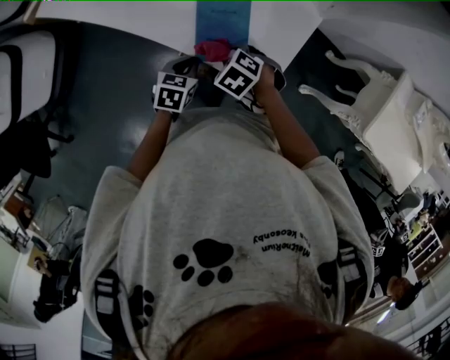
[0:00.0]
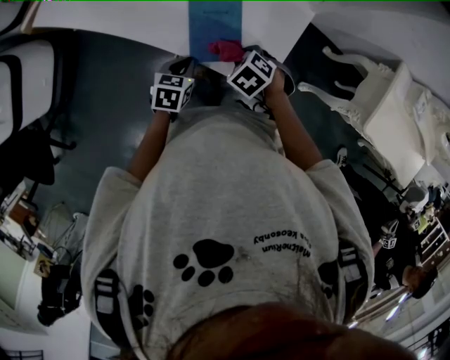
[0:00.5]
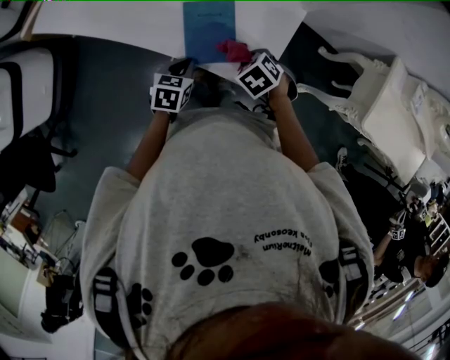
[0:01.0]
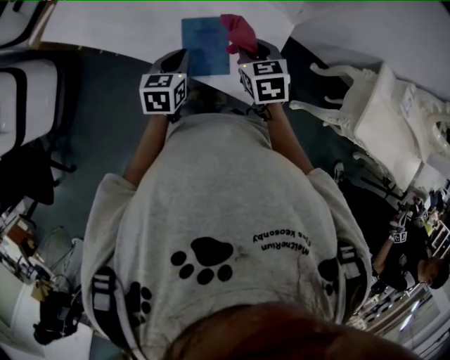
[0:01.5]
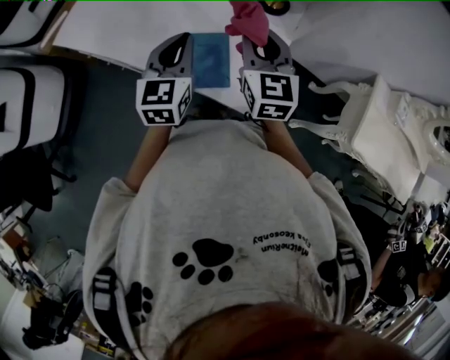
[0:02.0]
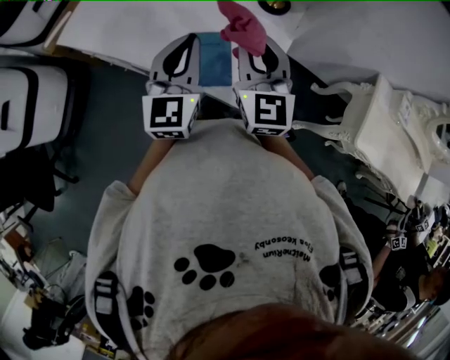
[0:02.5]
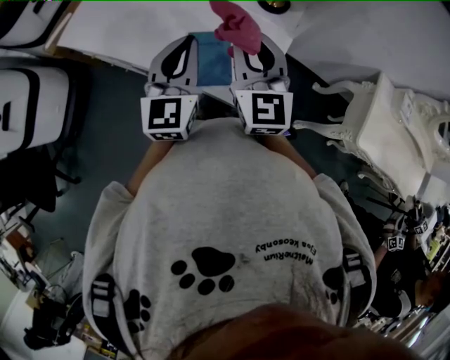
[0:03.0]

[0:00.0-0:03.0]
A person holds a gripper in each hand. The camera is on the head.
0:00.0 to 0:01.5: The grippers both shift upward by approximately 15 cm. The right gripper points its fingers roughly 30 degrees further upward.
0:01.5 to 0:03.0: The two grippers go approximately 20 cm upward. The right gripper tilts its fingers roughly 40 degrees upward. Meanwhile the left gripper tips its fingers upward by some 30 degrees.

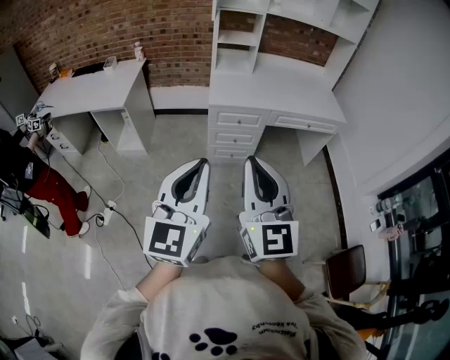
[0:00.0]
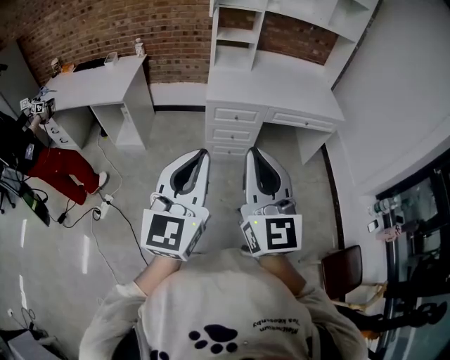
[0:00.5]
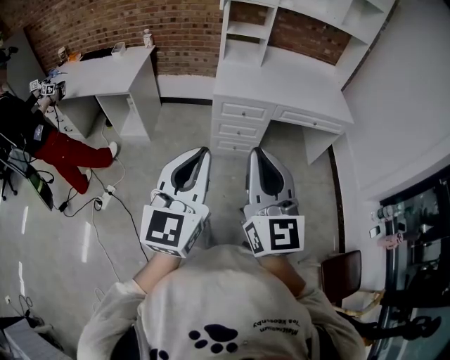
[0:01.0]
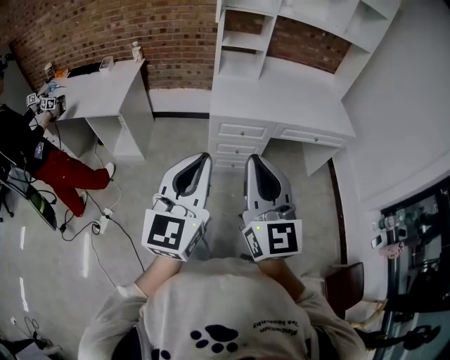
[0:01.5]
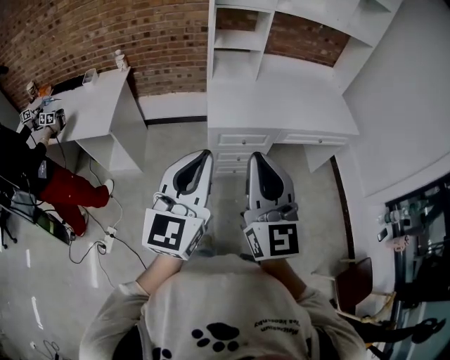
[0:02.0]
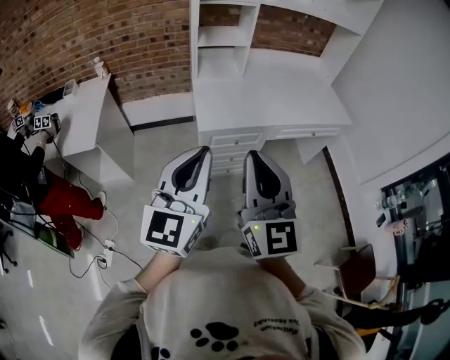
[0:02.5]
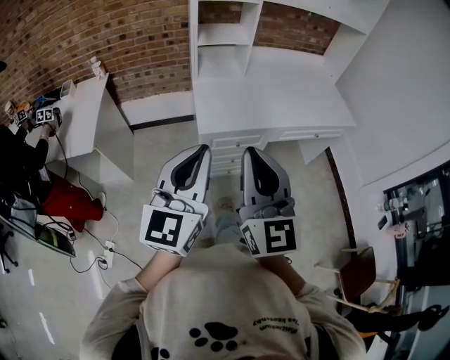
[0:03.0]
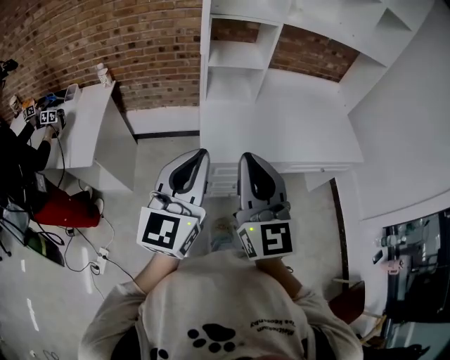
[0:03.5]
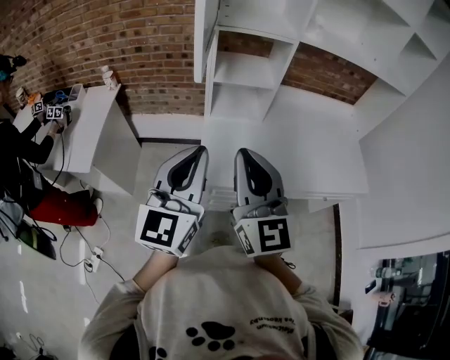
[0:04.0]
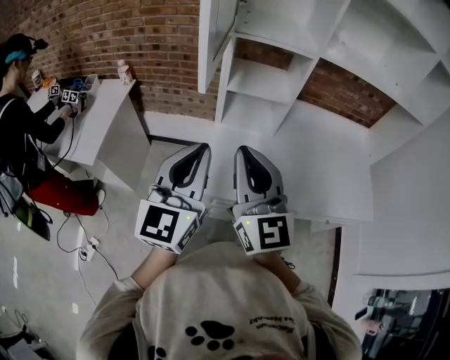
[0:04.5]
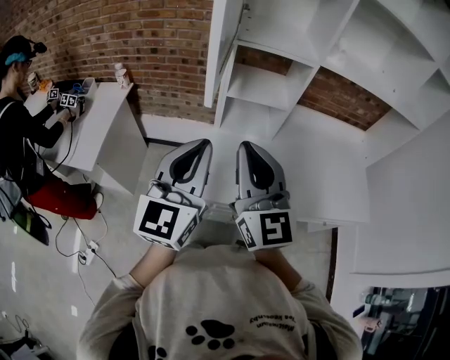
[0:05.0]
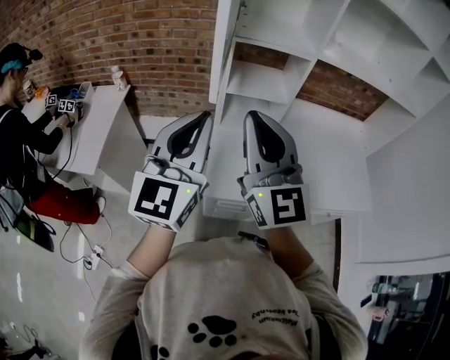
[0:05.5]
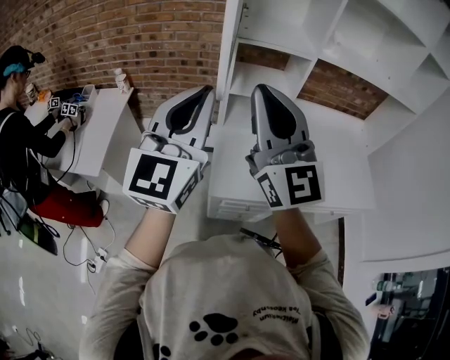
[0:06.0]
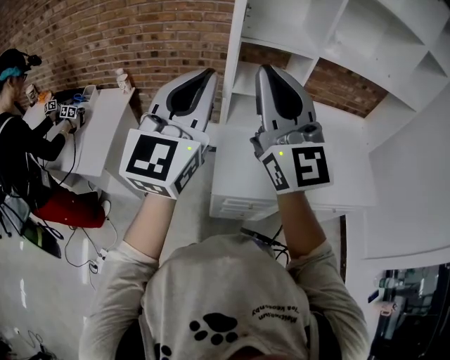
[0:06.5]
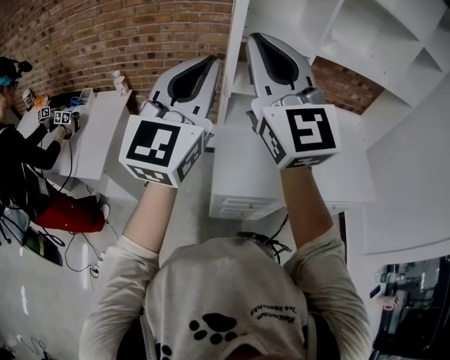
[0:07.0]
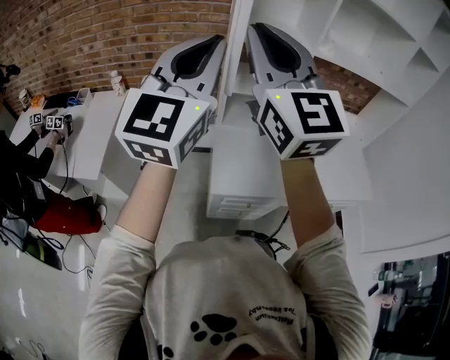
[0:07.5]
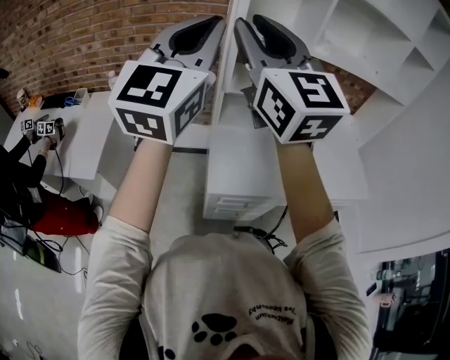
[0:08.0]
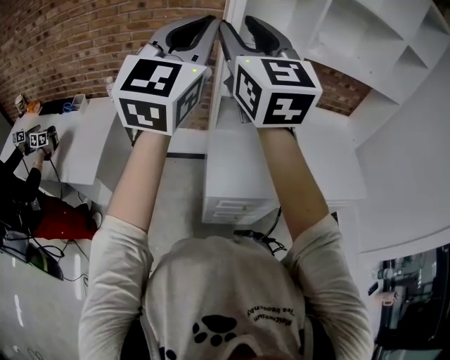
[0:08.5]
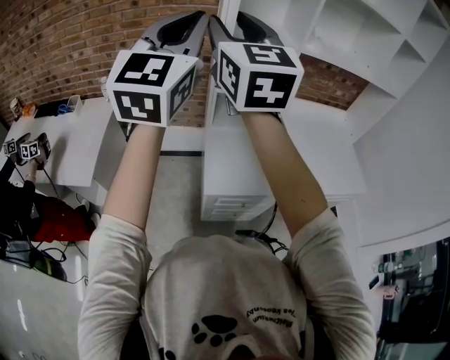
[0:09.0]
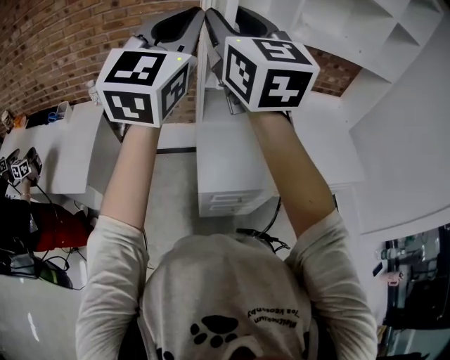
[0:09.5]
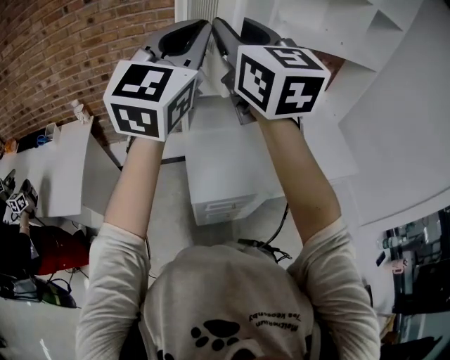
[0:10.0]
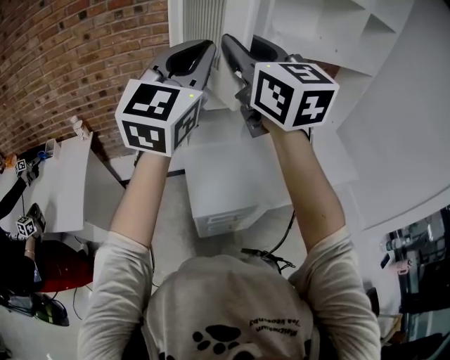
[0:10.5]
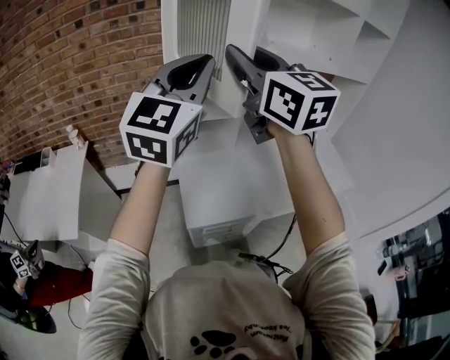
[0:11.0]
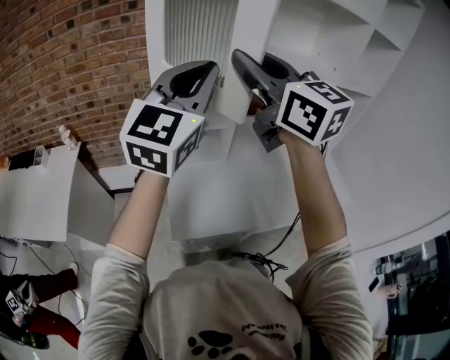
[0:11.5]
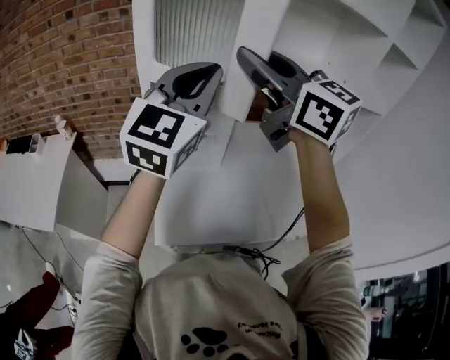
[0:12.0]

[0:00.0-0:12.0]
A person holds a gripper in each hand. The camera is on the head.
0:00.0 to 0:02.0: Both grippers move forward, roughly 25 cm.
0:02.0 to 0:04.0: The grippers both shift forward by some 30 cm.
0:04.0 to 0:06.0: Both grippers travel together upward and forward, about 15 cm.
0:06.0 to 0:08.0: The left gripper moves upward, some 10 cm. Meanwhile the right gripper is displaced upward and to the left by roughly 10 cm, and opens up.
0:08.0 to 0:10.0: Both grippers move to the right and forward, roughly 10 cm.
0:10.0 to 0:12.0: The grippers both shift to the right and forward by some 15 cm. The right gripper turns by roughly 30 degrees.

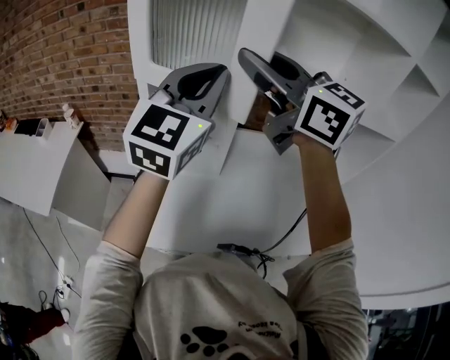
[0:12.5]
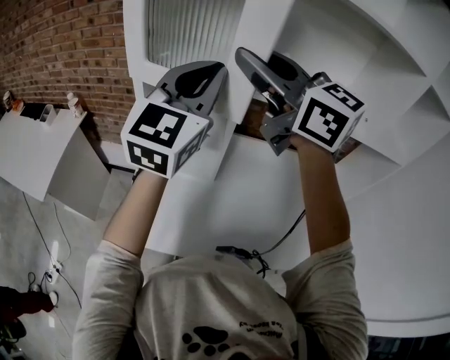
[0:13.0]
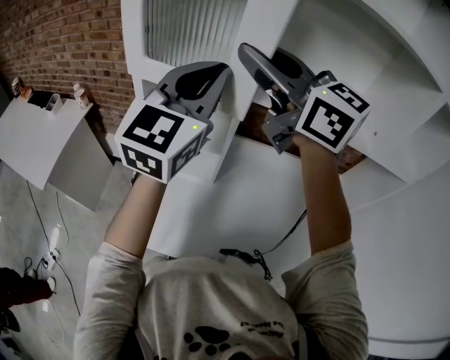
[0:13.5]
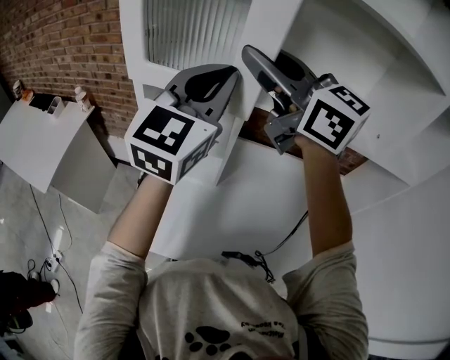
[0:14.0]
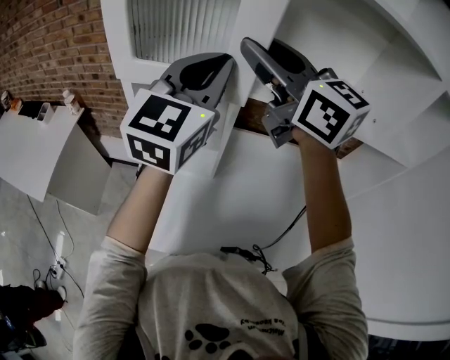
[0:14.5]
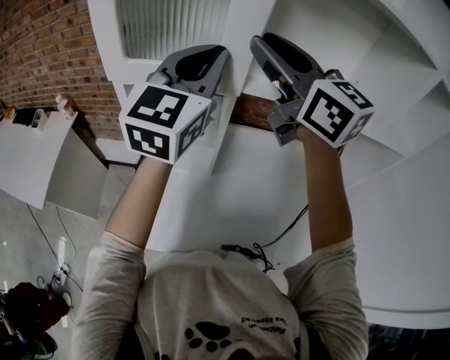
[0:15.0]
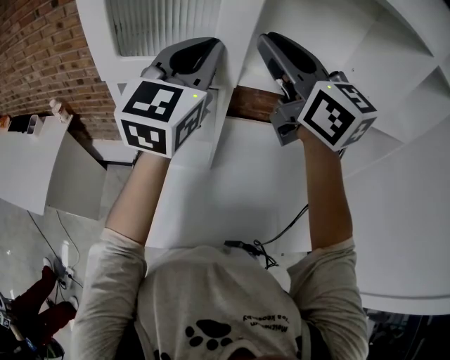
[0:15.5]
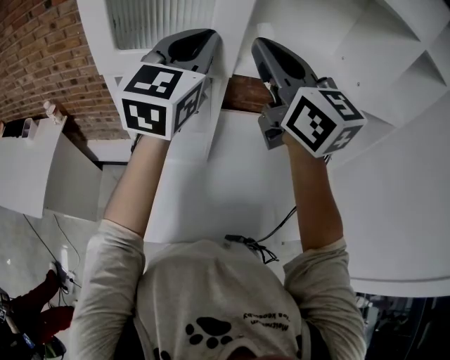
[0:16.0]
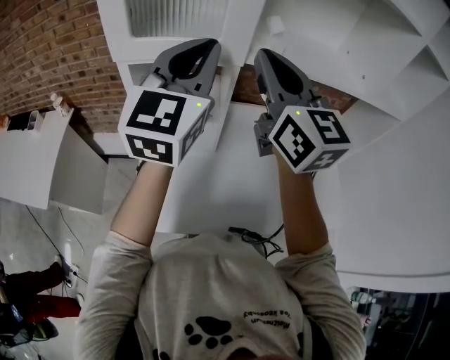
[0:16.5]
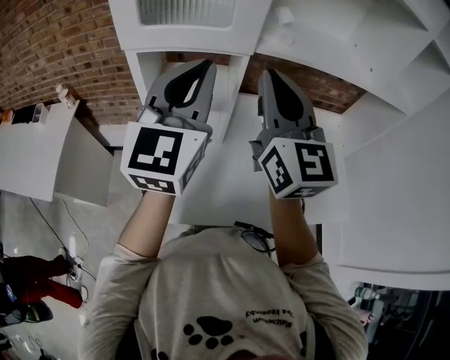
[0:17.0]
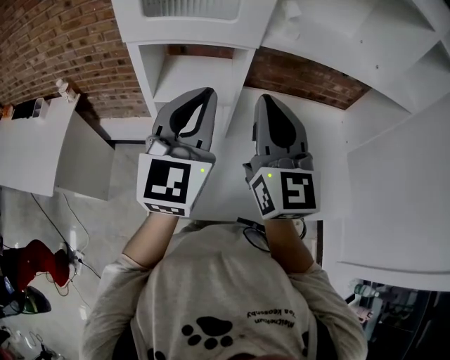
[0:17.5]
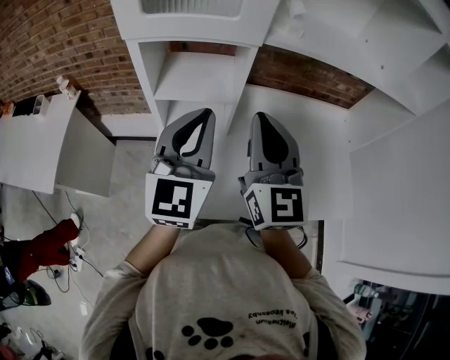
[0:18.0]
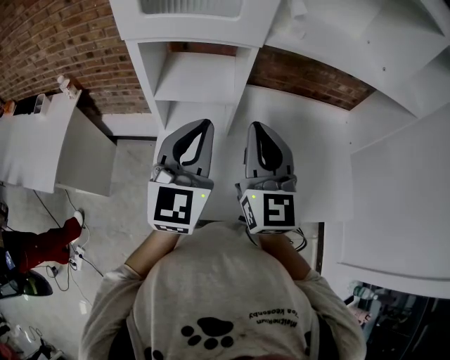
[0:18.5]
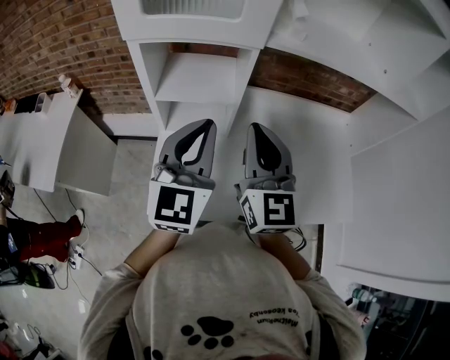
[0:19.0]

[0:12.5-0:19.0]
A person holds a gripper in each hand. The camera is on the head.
0:12.5 to 0:14.5: Both grippers travel together forward, some 5 cm.
0:14.5 to 0:17.0: The left gripper heads backward, covering approximately 10 cm. The right gripper is displaced backward and downward by roughly 15 cm, changes its angle by roughly 40 degrees, and closes up.
0:17.0 to 0:19.0: The two grippers go approximately 10 cm downward.

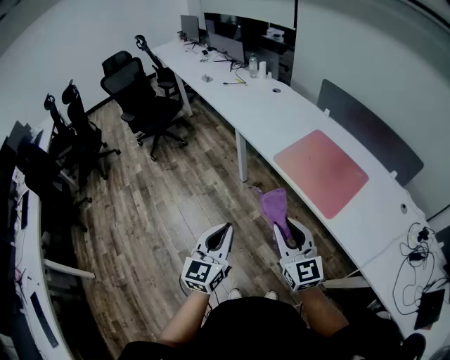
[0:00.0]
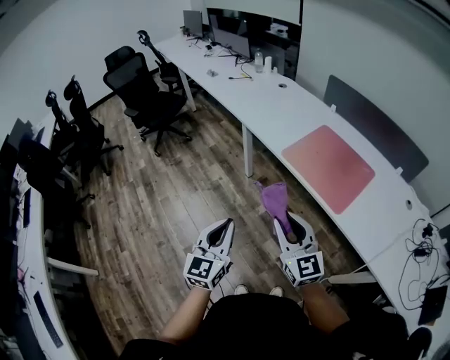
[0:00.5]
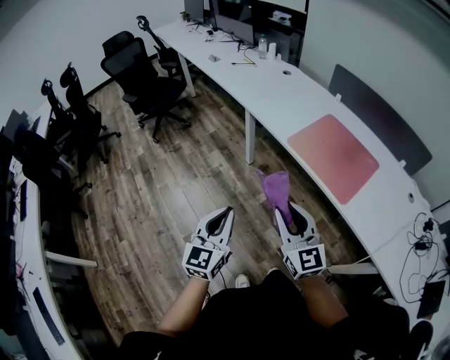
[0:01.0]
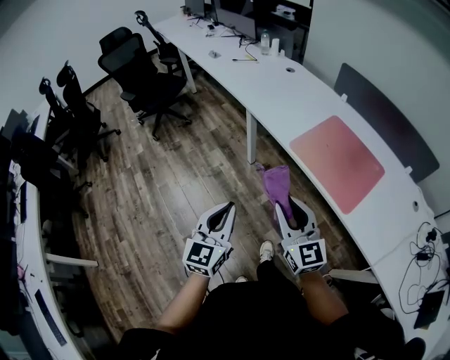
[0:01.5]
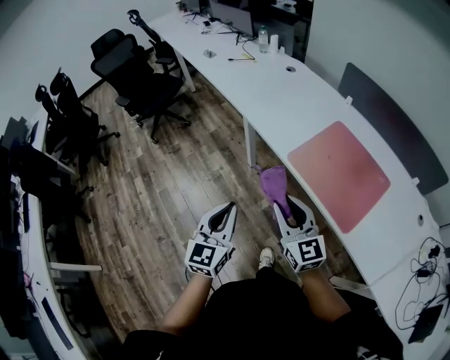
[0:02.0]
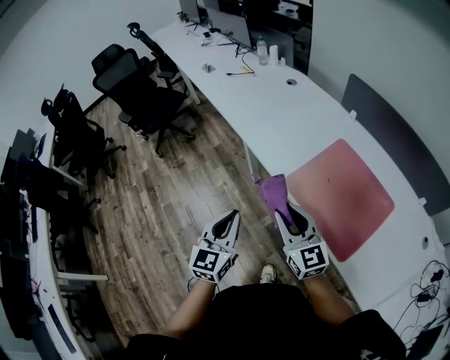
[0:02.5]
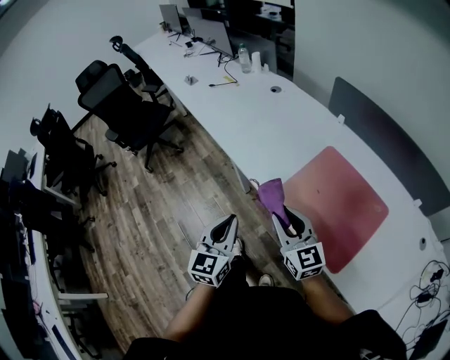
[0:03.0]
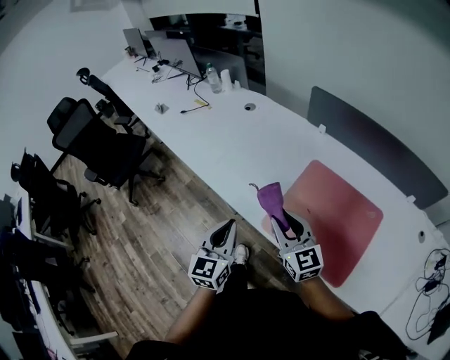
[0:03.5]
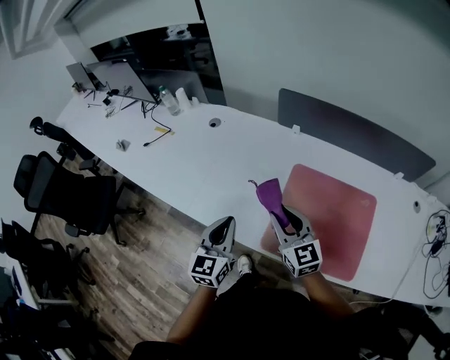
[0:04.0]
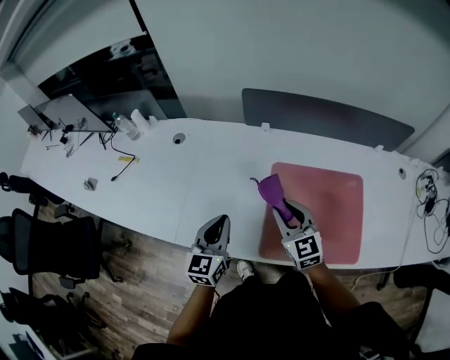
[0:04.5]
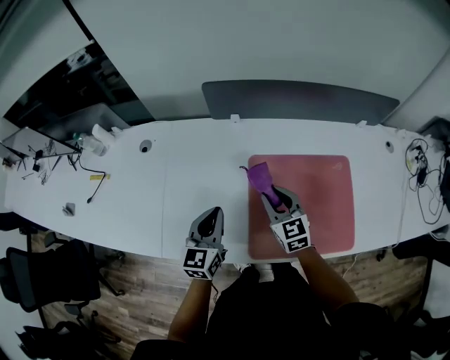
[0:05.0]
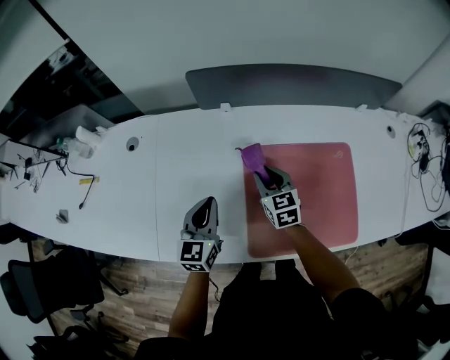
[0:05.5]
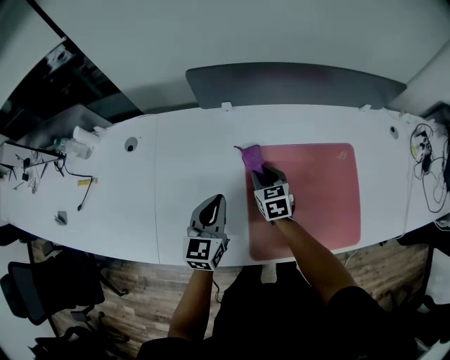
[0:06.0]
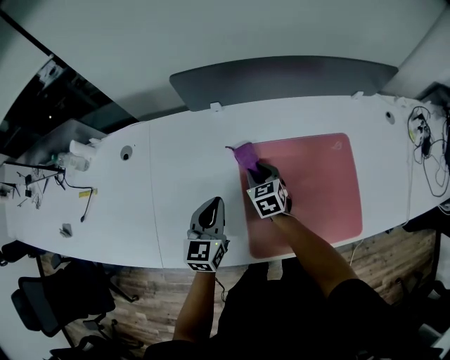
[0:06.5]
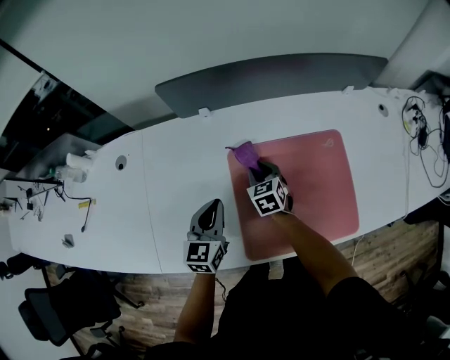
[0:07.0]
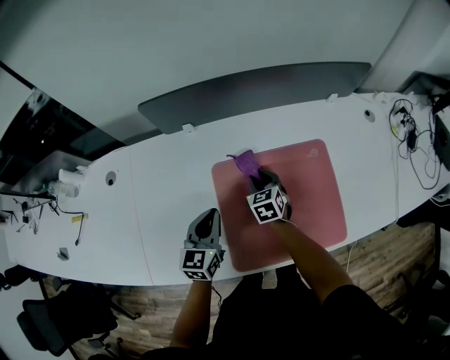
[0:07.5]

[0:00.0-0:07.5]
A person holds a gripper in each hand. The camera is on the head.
0:00.0 to 0:02.0: Both grippers travel together forward, roughly 15 cm.
0:02.0 to 0:04.0: The left gripper moves about 40 cm, and changes its angle by approximately 30 degrees; the right gripper shifts by roughly 35 cm, and changes its angle by some 30 degrees.
0:04.0 to 0:05.5: The right gripper shifts some 25 cm forward, downward and to the right, and turns by some 40 degrees. Meanwhile the left gripper moves forward and downward, some 20 cm, and rotates about 20 degrees.
0:05.5 to 0:07.5: The left gripper travels to the right by approximately 10 cm. Meanwhile the right gripper heads to the right and downward, covering some 10 cm.
